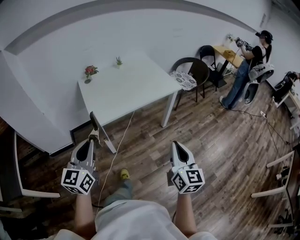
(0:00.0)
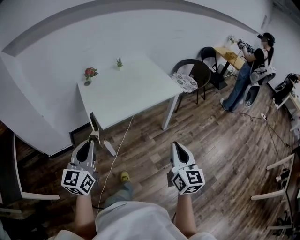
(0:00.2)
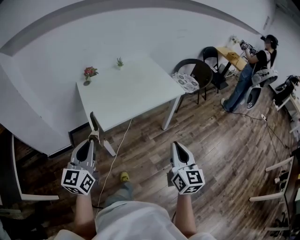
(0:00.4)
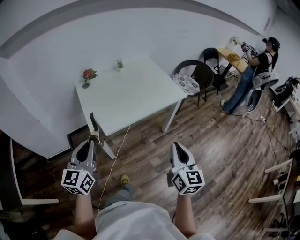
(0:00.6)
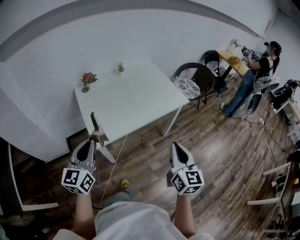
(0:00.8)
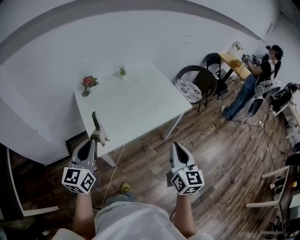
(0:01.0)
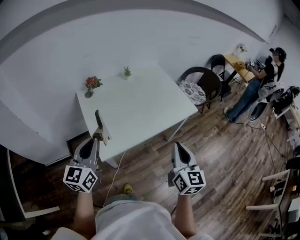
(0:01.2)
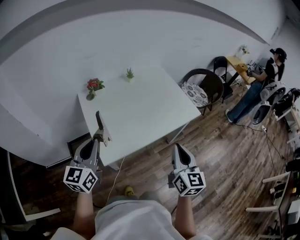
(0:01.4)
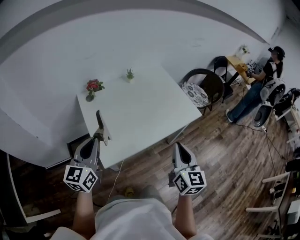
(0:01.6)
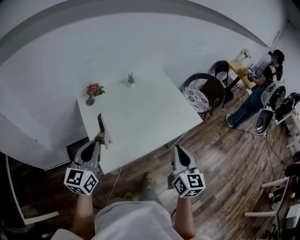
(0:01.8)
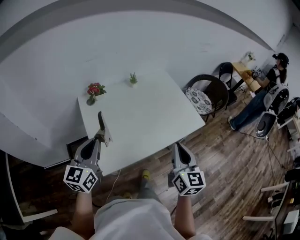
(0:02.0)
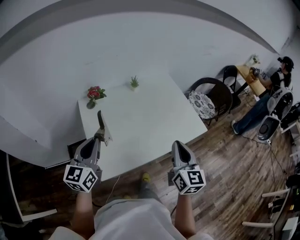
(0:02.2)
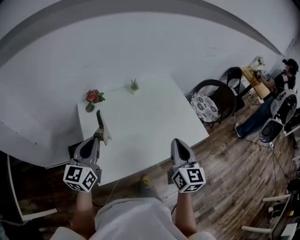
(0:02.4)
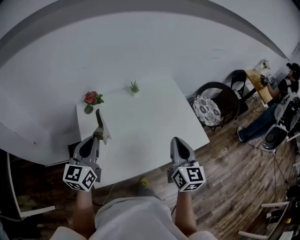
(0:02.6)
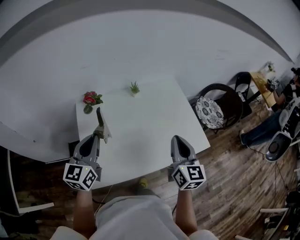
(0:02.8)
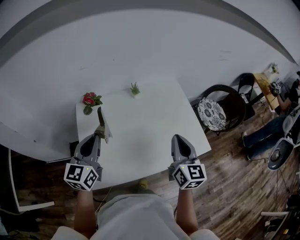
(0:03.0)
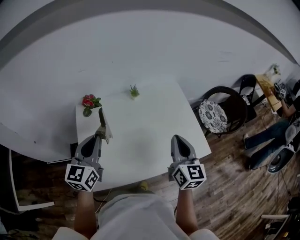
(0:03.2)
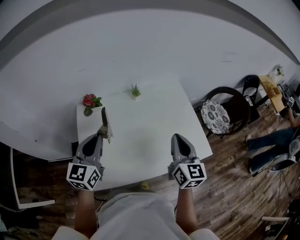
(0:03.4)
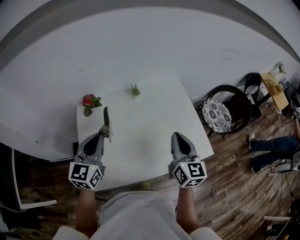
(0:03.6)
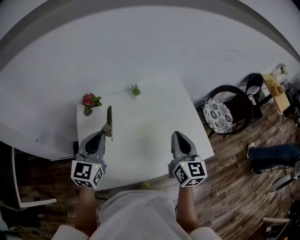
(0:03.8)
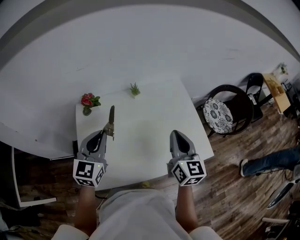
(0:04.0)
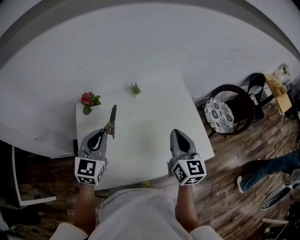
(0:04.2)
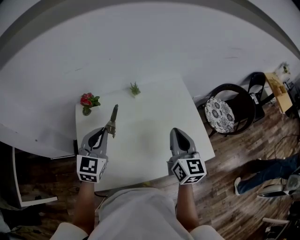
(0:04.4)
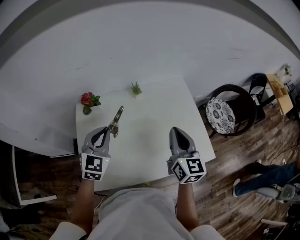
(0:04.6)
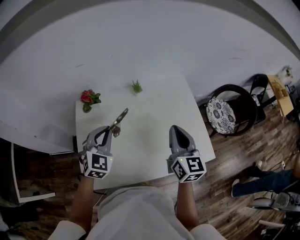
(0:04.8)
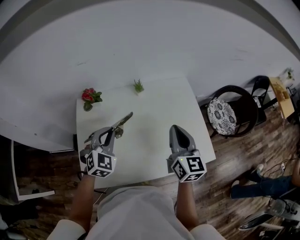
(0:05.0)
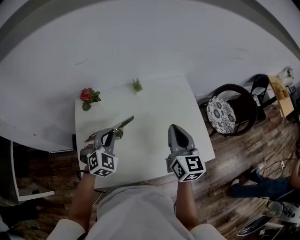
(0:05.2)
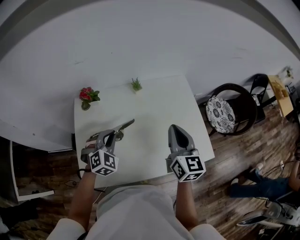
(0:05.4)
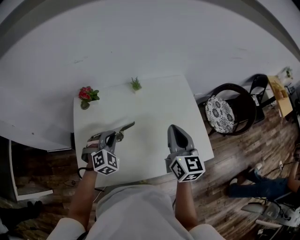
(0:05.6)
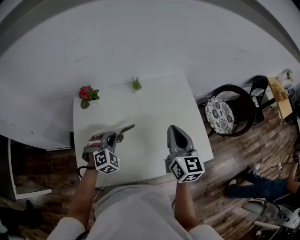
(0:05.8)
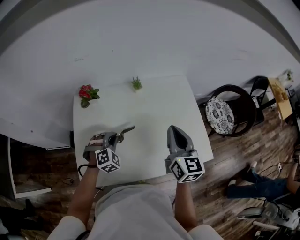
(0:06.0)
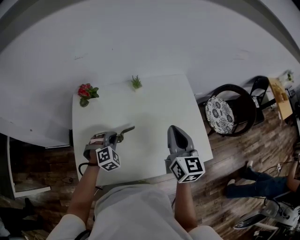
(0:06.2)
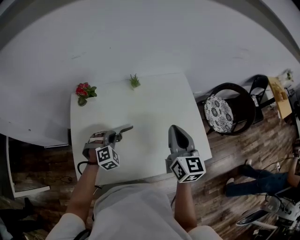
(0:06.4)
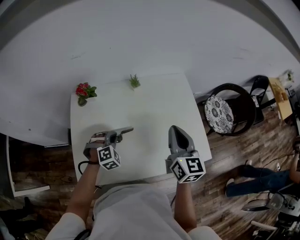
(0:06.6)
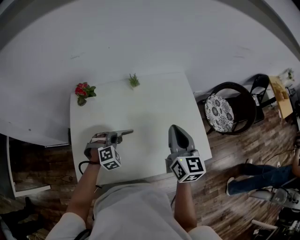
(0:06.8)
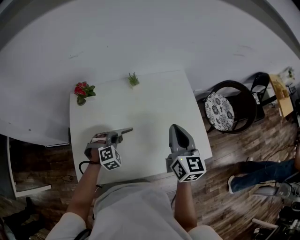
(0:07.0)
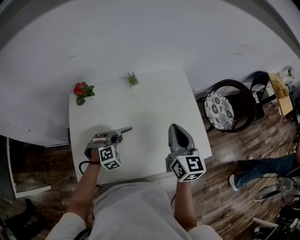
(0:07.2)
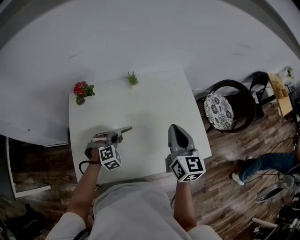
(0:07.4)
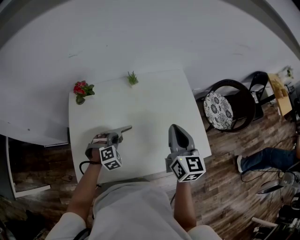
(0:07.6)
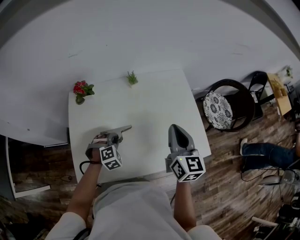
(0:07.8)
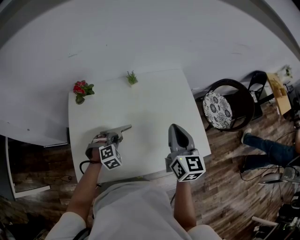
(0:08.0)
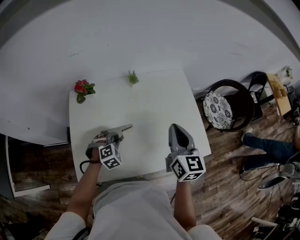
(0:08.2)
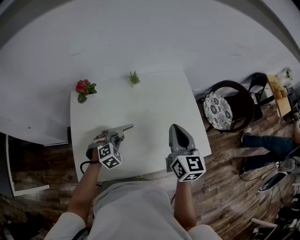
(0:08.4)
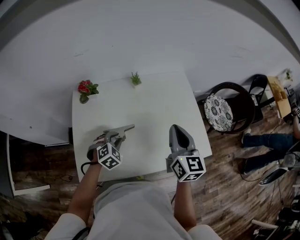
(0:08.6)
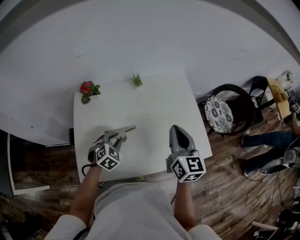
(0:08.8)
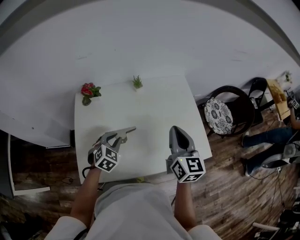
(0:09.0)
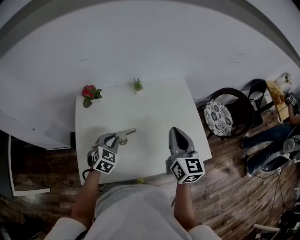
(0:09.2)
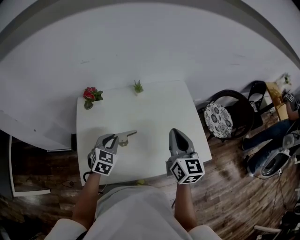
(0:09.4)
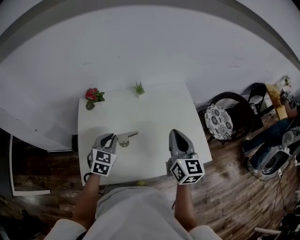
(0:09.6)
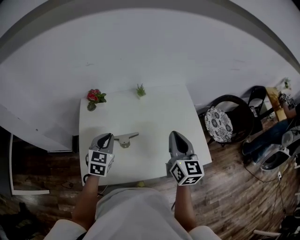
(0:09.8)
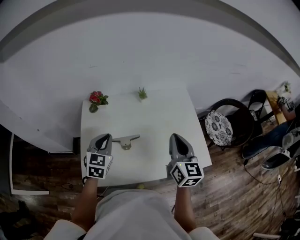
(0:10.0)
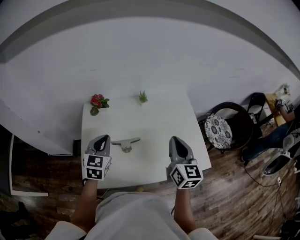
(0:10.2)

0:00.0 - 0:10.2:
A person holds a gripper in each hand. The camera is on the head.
0:00.0 - 0:01.4: The two grippers go approximately 30 cm forward and to the left.
0:01.4 - 0:03.0: Both grippers travel together forward, approximately 25 cm.
0:03.0 - 0:04.4: The right gripper travels forward by roughly 5 cm. The left gripper shifts approximately 10 cm forward and to the right, and turns by approximately 20 degrees.
0:04.4 - 0:05.8: The left gripper heads downward, covering about 15 cm, and changes its angle by about 50 degrees.
0:05.8 - 0:07.2: The left gripper travels downward by some 5 cm.
0:07.2 - 0:08.8: The left gripper swivels approximately 30 degrees.
0:08.8 - 0:10.2: The left gripper shifts roughly 15 cm upward and to the left, rotates some 40 degrees, and closes up.

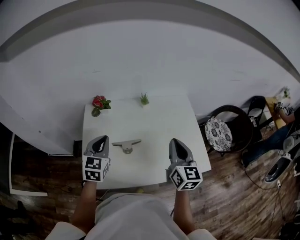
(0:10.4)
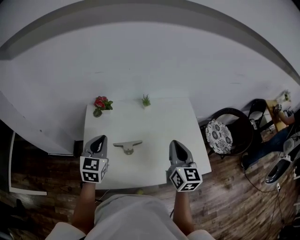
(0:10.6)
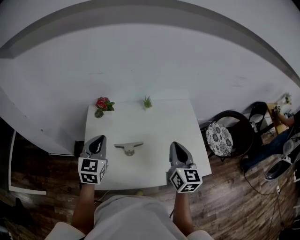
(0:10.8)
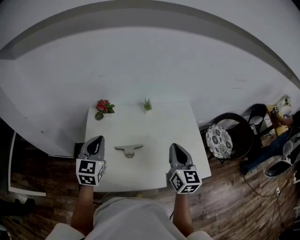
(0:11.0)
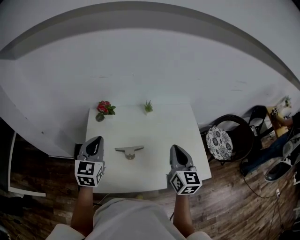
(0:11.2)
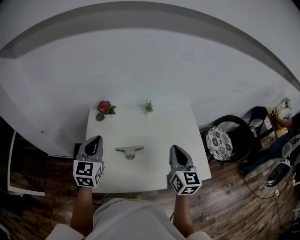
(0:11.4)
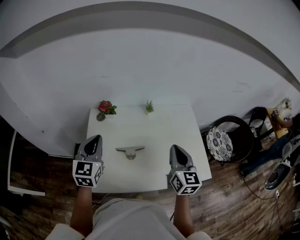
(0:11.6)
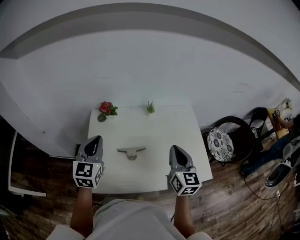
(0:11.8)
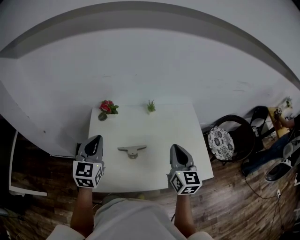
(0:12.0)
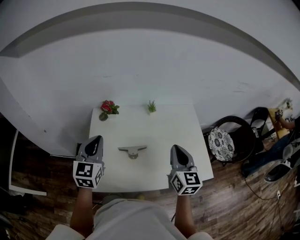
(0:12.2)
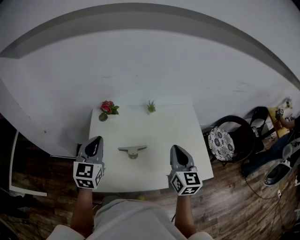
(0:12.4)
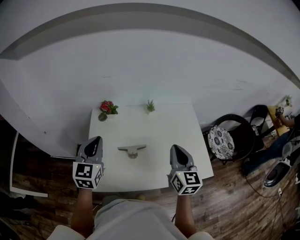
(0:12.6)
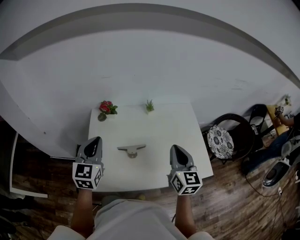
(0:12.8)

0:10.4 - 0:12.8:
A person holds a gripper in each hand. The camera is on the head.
0:10.4 - 0:11.6: The left gripper shifts about 5 cm upward.
0:11.6 - 0:12.8: The grippers move only a little.

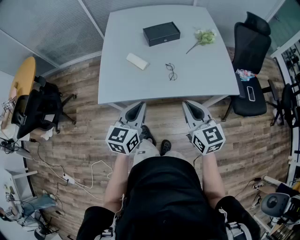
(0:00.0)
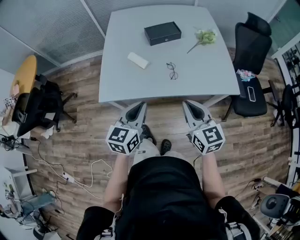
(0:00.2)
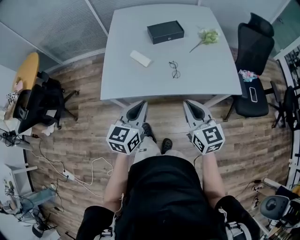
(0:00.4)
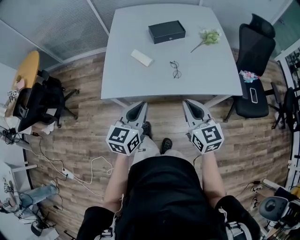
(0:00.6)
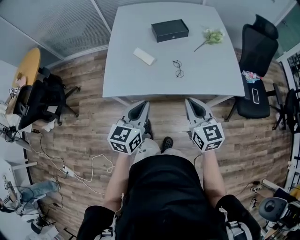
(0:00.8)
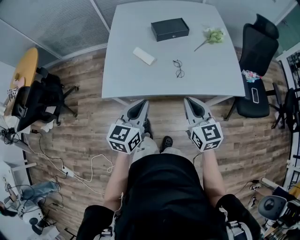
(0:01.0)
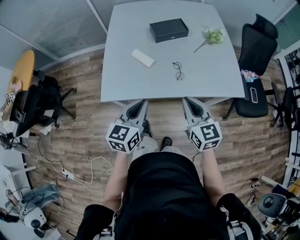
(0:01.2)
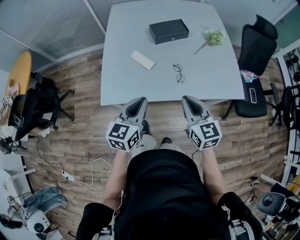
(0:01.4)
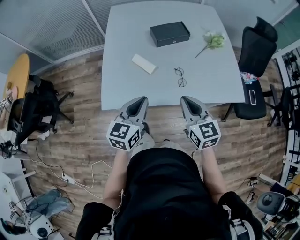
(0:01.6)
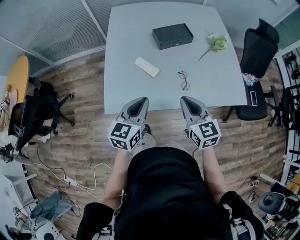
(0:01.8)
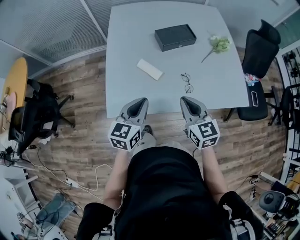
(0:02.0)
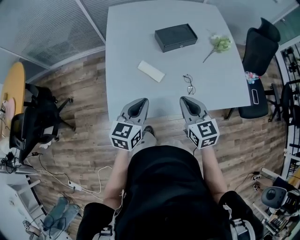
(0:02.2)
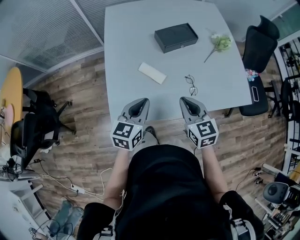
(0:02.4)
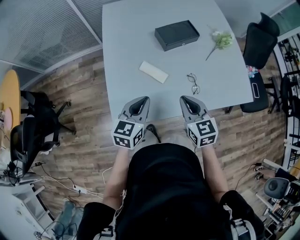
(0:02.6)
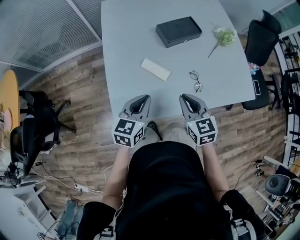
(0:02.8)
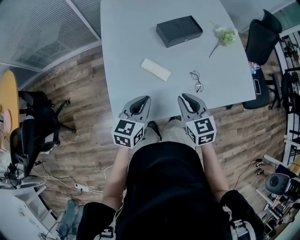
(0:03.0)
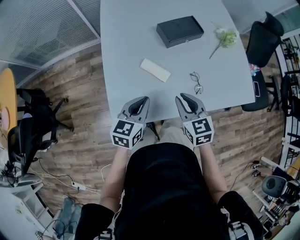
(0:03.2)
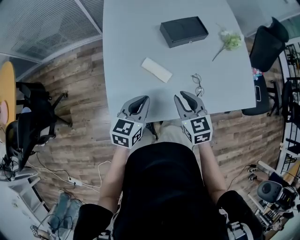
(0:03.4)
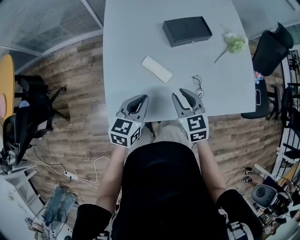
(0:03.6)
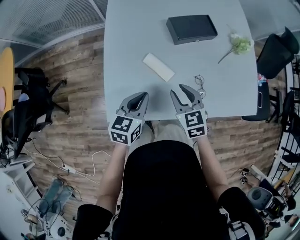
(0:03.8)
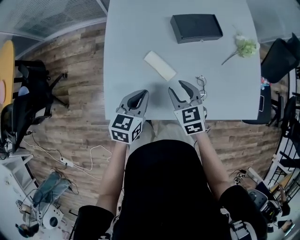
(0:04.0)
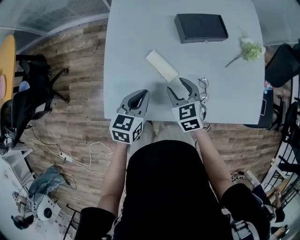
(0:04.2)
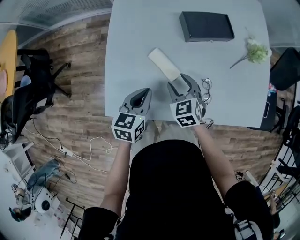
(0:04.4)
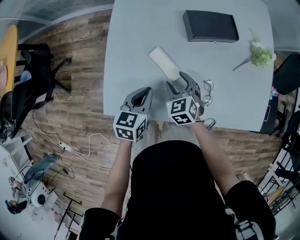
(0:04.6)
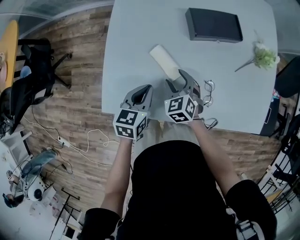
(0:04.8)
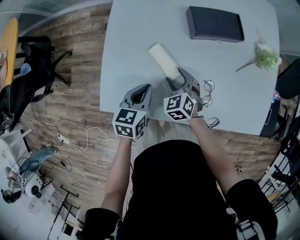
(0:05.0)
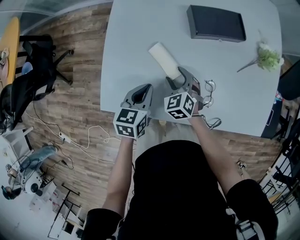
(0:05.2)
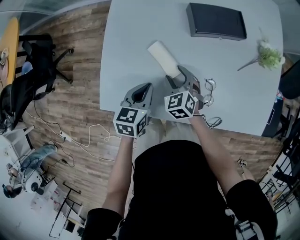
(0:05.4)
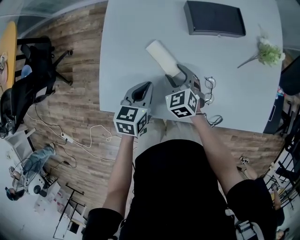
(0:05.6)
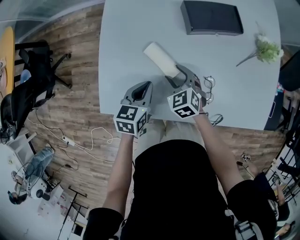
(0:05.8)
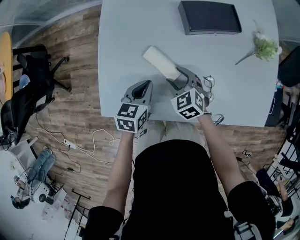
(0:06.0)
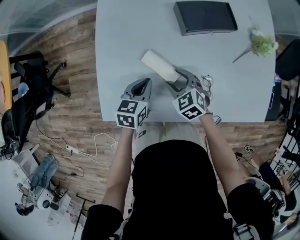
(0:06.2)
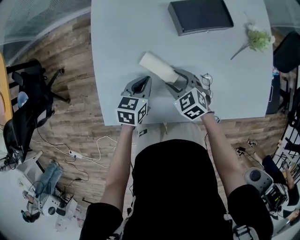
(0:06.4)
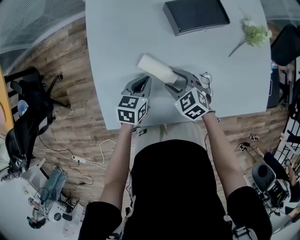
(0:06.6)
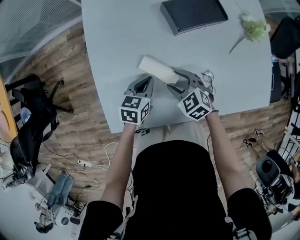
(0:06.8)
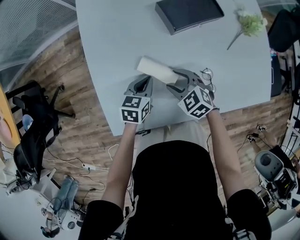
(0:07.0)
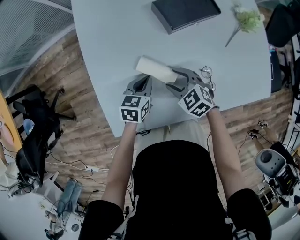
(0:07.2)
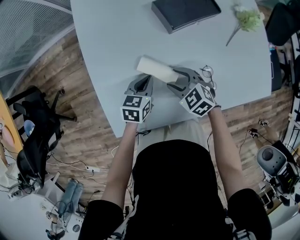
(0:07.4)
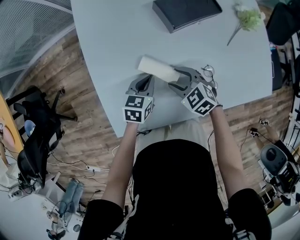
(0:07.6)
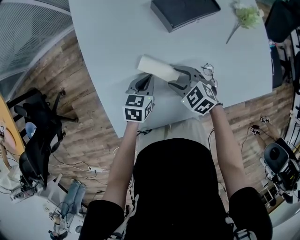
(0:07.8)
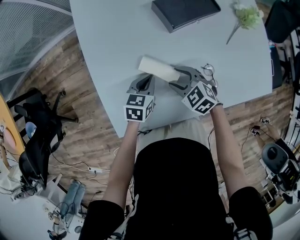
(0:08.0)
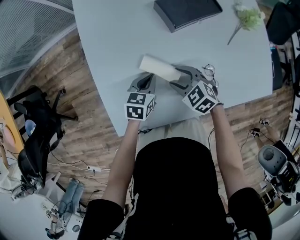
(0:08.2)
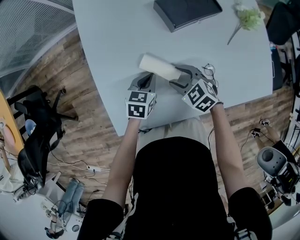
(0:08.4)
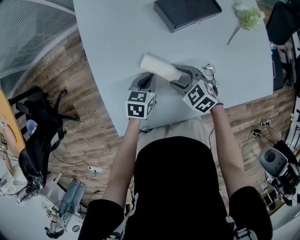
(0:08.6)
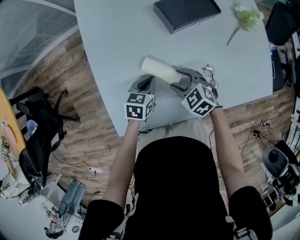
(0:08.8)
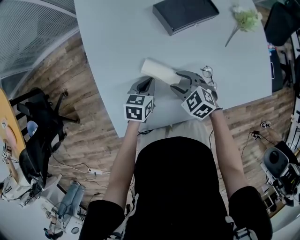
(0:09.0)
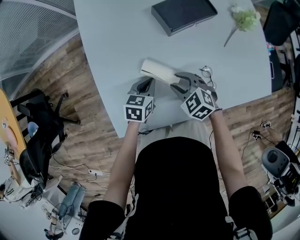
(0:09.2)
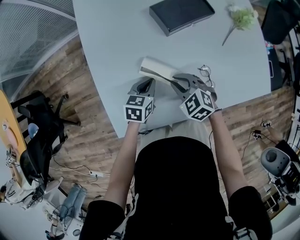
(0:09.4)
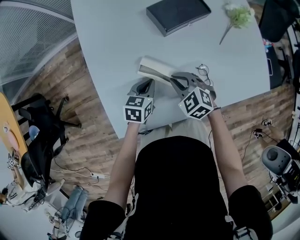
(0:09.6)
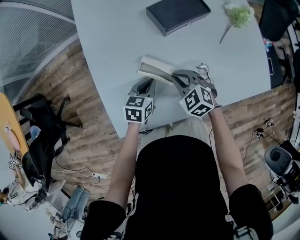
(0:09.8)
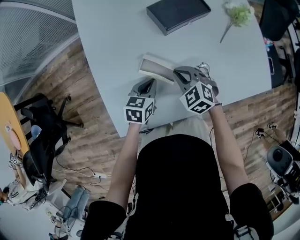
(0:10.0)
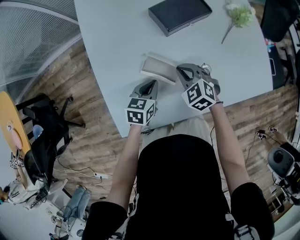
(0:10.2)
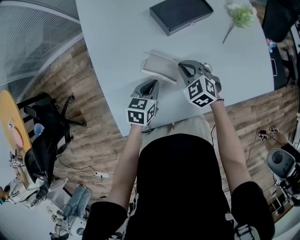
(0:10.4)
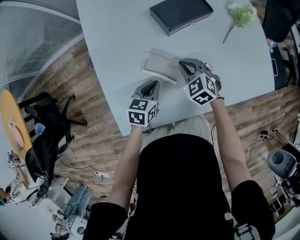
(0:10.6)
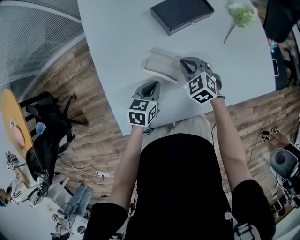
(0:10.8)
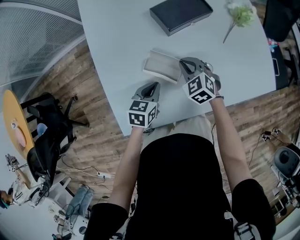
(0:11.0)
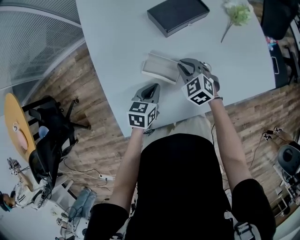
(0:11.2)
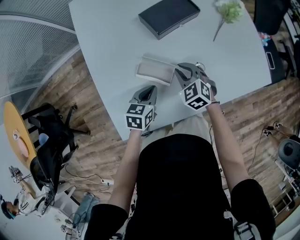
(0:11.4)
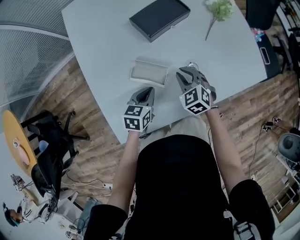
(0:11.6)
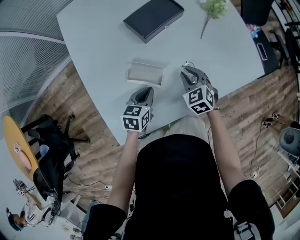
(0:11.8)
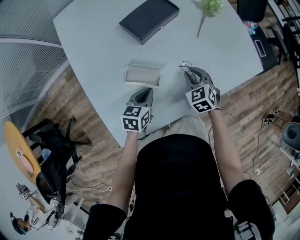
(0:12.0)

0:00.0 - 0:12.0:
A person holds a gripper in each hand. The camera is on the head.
0:00.0 - 0:01.6: Both grippers travel together forward and to the left, about 10 cm.
0:01.6 - 0:03.0: The grippers both shift to the left, forward and downward by roughly 20 cm.
0:03.0 - 0:04.4: The left gripper goes some 10 cm downward and forward, and turns by some 20 degrees, while the right gripper travels downward and forward by some 20 cm, rotates approximately 30 degrees, and opens.
0:04.4 - 0:06.0: The two grippers go approximately 5 cm downward.
0:06.0 - 0:07.6: The left gripper shifts some 5 cm forward.
0:07.6 - 0:09.0: The grippers stay close to where they were, moving slightly.
0:09.0 - 0:10.4: The right gripper is displaced forward by some 5 cm, and closes up.
0:10.4 - 0:12.0: The right gripper moves to the right, some 15 cm, and turns by roughly 30 degrees. The left gripper moves to the right, some 5 cm.
